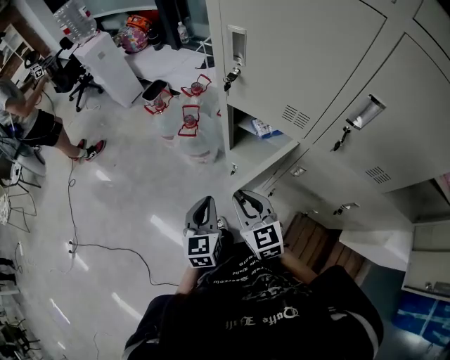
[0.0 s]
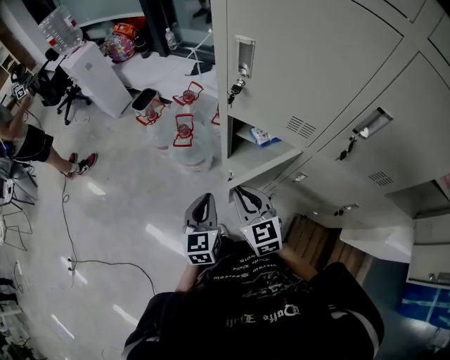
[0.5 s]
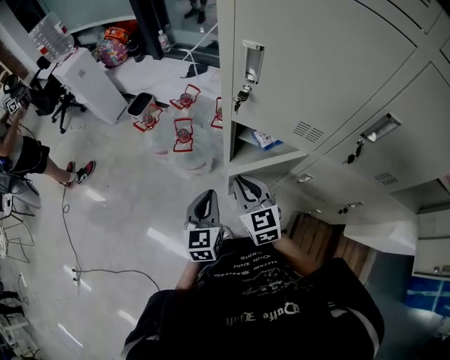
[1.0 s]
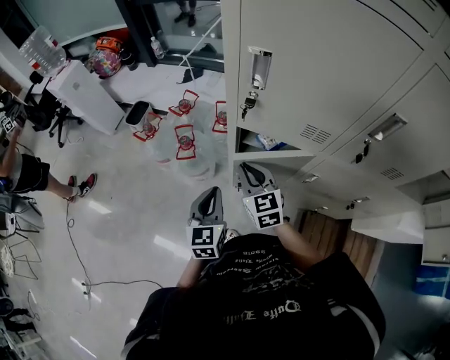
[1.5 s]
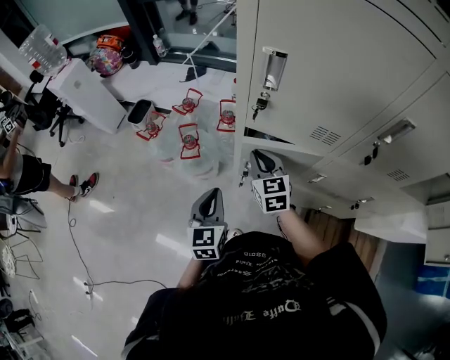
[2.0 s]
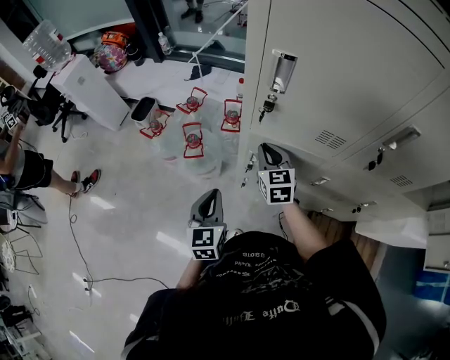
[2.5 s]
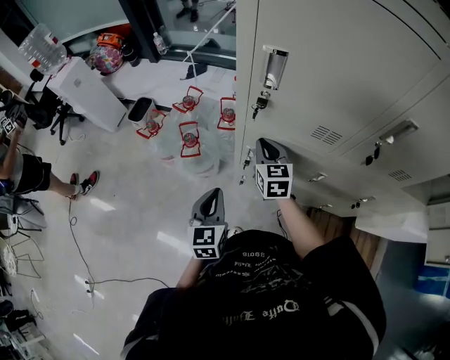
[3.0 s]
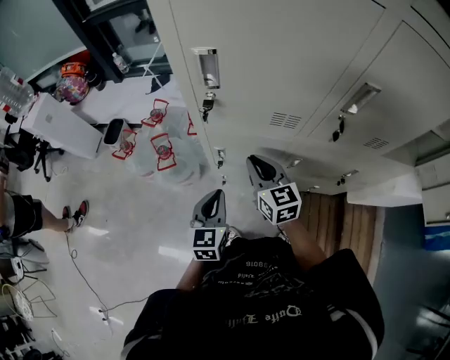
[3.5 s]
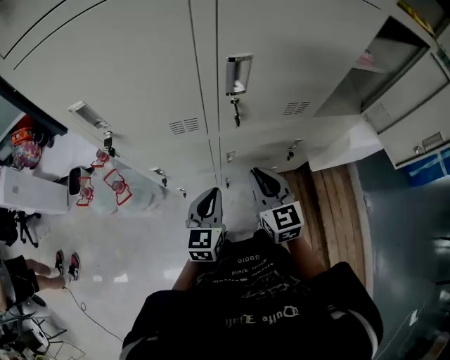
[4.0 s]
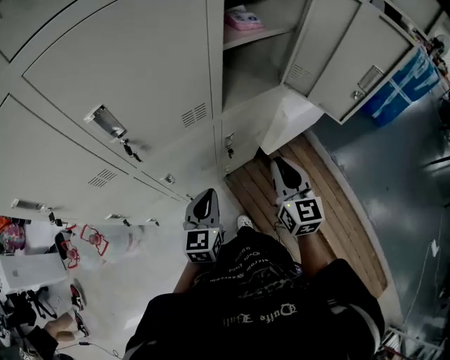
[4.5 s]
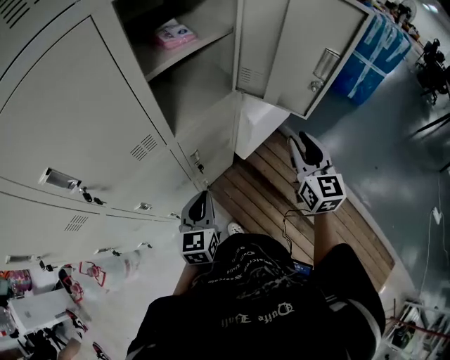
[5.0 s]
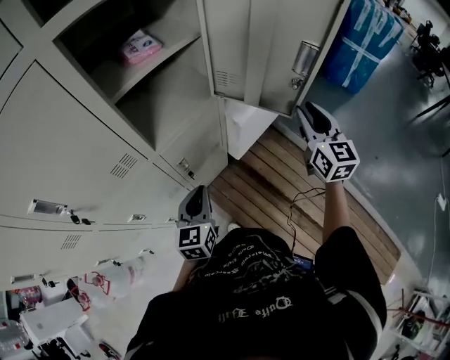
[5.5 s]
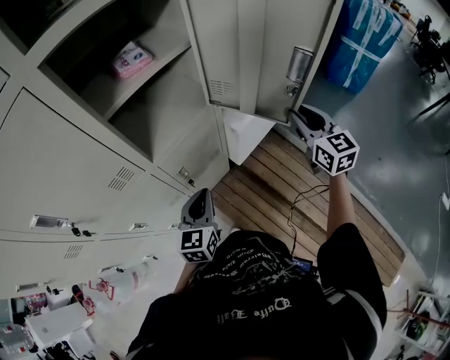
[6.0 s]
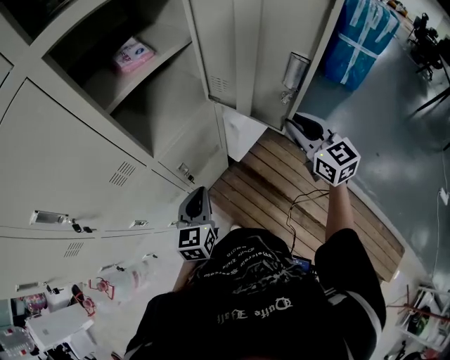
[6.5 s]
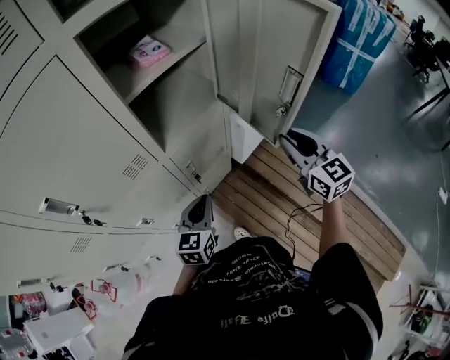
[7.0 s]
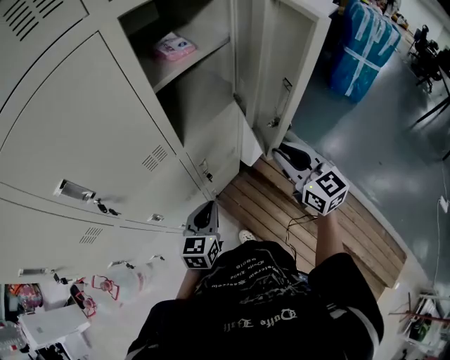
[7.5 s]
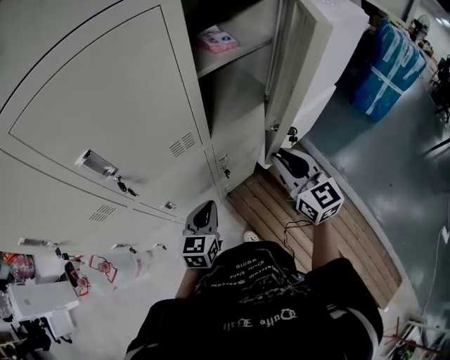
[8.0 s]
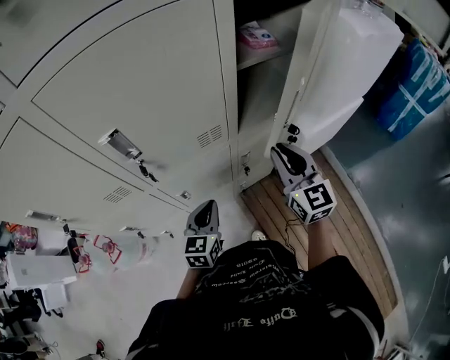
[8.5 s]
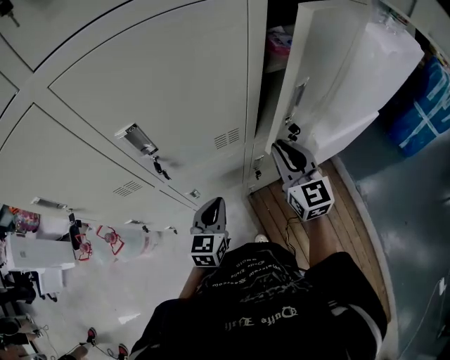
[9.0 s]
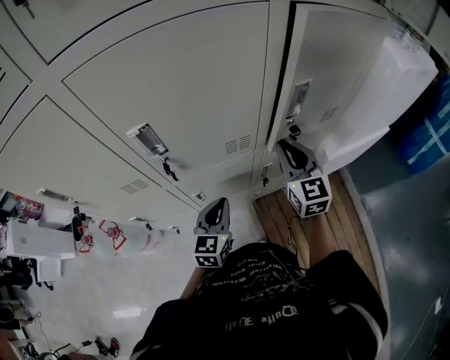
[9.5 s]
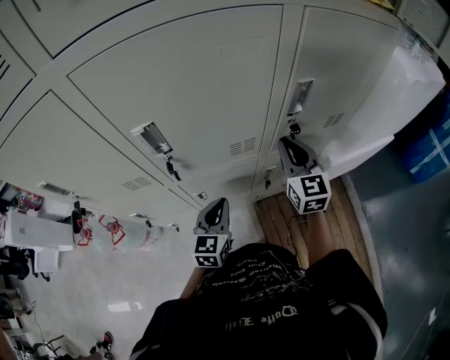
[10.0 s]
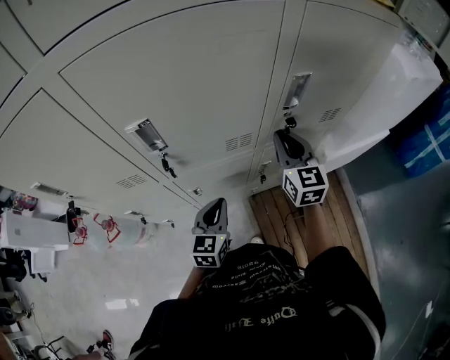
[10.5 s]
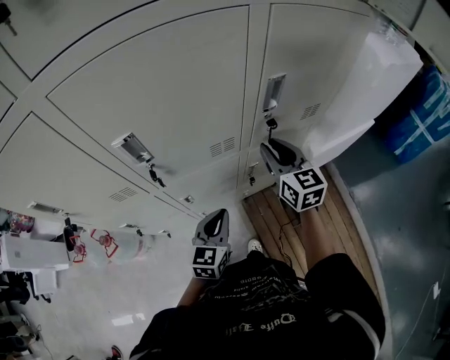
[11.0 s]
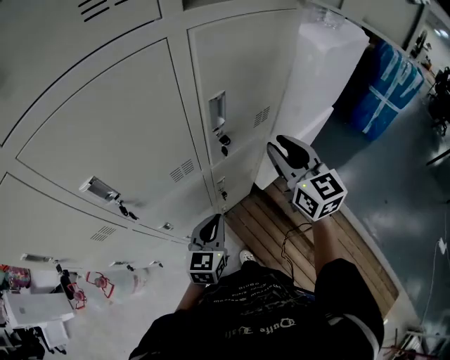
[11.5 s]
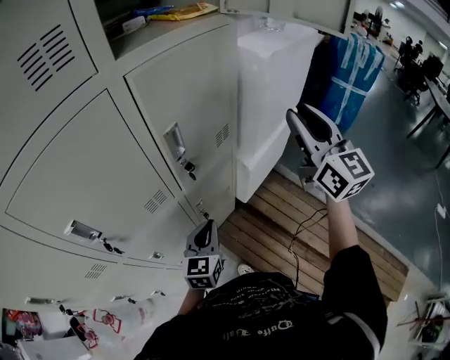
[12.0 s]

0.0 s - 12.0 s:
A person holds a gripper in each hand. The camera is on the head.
0.0 s - 2.0 s: The right gripper shifts roughly 20 cm forward, and changes its angle by approximately 20 degrees. The left gripper goes approximately 15 cm forward and to the left.
2.0 s - 4.0 s: The right gripper changes place by roughly 35 cm, and swivels some 30 degrees, while the left gripper changes place by some 25 cm, and changes its angle by about 30 degrees.
4.0 s - 6.0 s: The left gripper turns by about 30 degrees, while the right gripper moves some 30 cm, rotates roughly 40 degrees, and opens its fingers.
6.0 s - 8.0 s: The left gripper shifts approximately 15 cm to the left and backward; the right gripper is displaced to the left and backward by some 25 cm.
8.0 s - 10.0 s: The left gripper moves to the left, roughly 5 cm, while the right gripper goes roughly 15 cm forward and to the left.
10.0 s - 12.0 s: The left gripper is displaced to the right by about 15 cm, and changes its angle by about 30 degrees, while the right gripper heads to the right and upward, covering approximately 35 cm, swivels roughly 30 degrees, and opens.

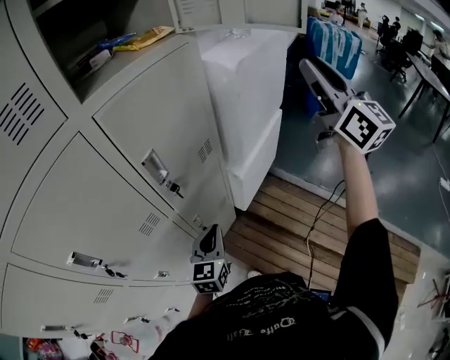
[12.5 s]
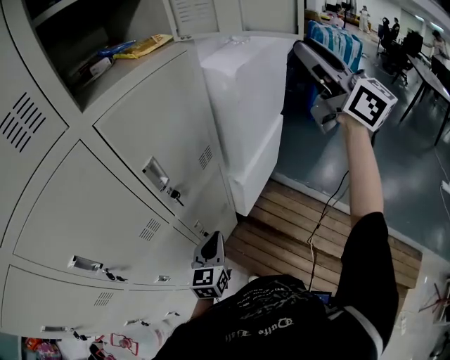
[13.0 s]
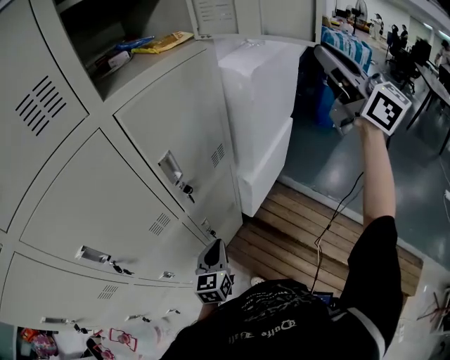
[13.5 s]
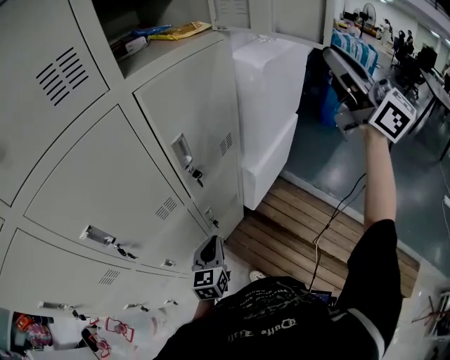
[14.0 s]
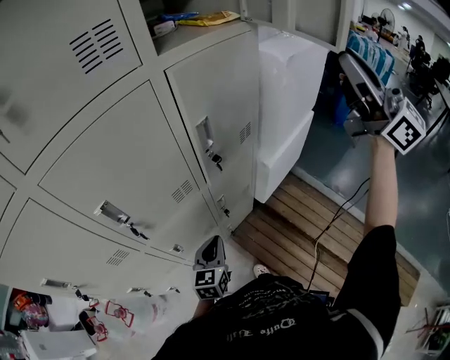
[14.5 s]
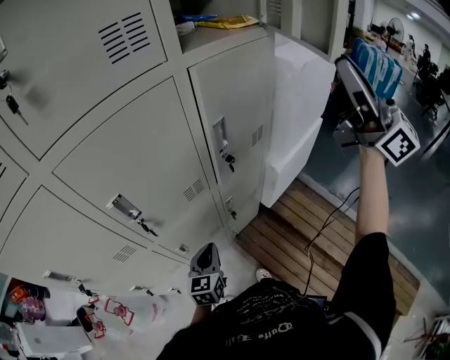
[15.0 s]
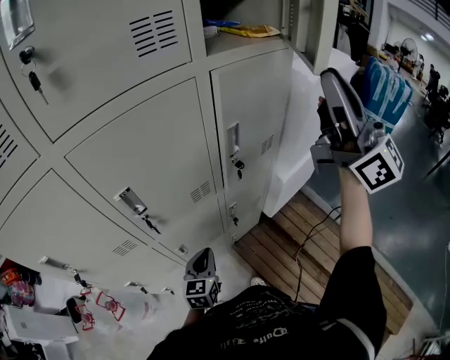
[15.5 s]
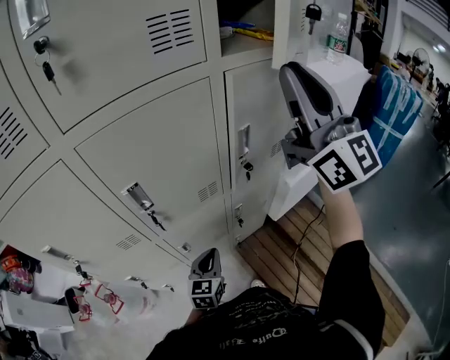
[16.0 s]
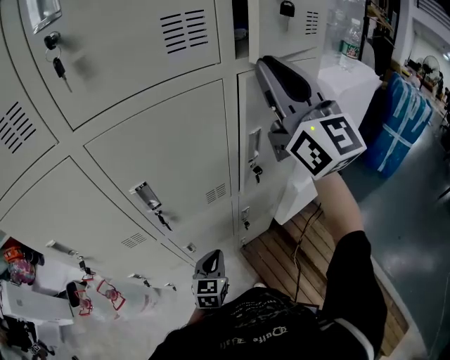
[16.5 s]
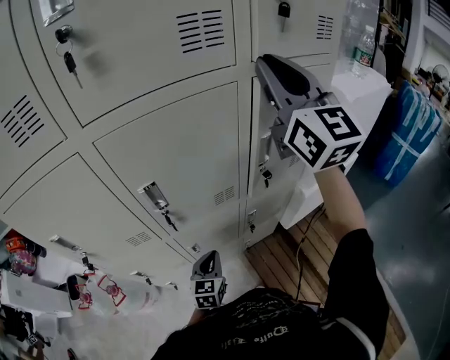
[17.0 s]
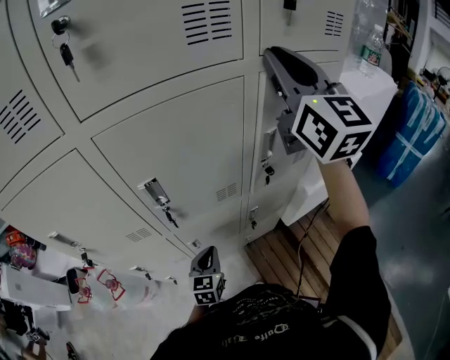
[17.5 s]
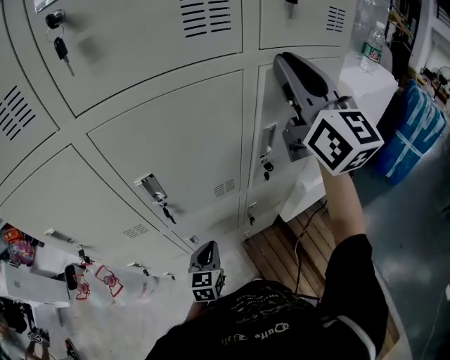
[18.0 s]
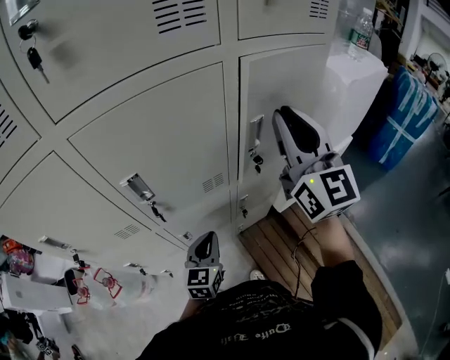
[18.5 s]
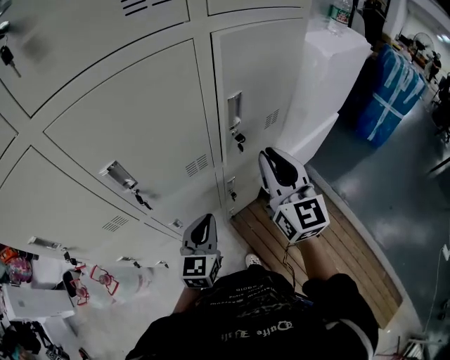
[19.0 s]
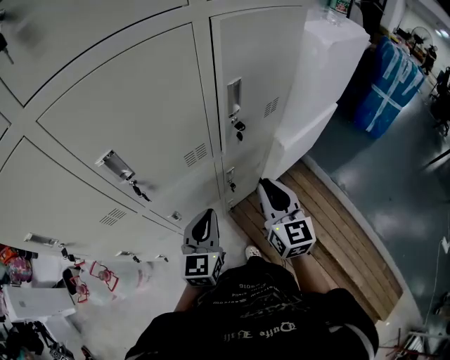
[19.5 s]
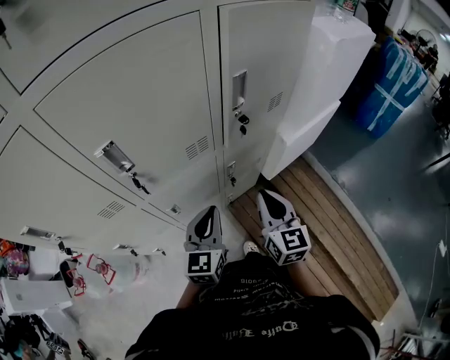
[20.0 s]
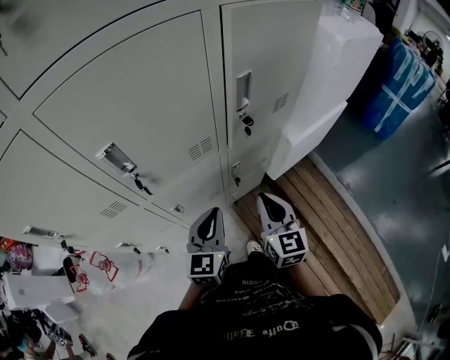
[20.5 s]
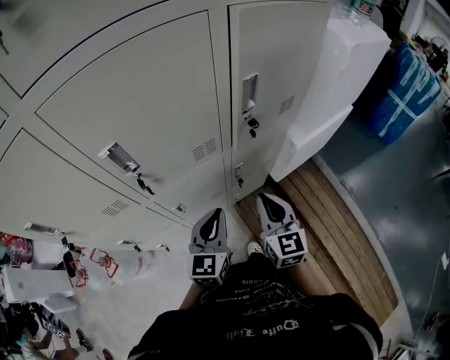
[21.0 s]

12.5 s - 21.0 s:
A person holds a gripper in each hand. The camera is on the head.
12.5 s - 14.5 s: The right gripper is displaced to the left, backward and upward by some 15 cm, and rotates approximately 30 degrees. Meanwhile the left gripper travels to the left, backward and downward by roughly 15 cm.
14.5 s - 16.5 s: The left gripper moves to the left, about 5 cm. The right gripper moves to the left and forward, some 25 cm.
16.5 s - 19.0 s: The right gripper is displaced downward by about 25 cm, and rotates approximately 30 degrees, while the left gripper goes approximately 5 cm upward.
19.0 s - 21.0 s: The right gripper is displaced downward by about 15 cm.

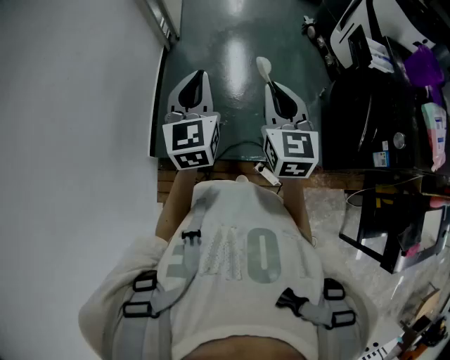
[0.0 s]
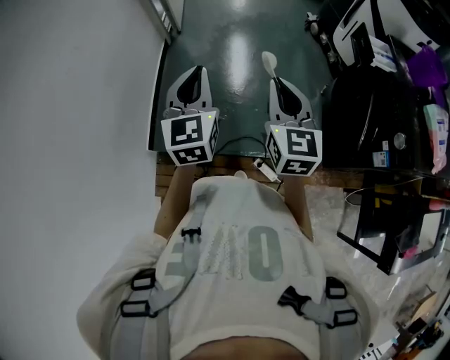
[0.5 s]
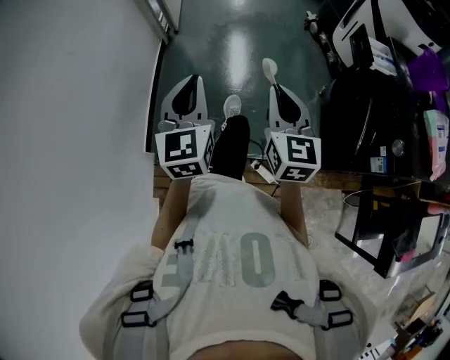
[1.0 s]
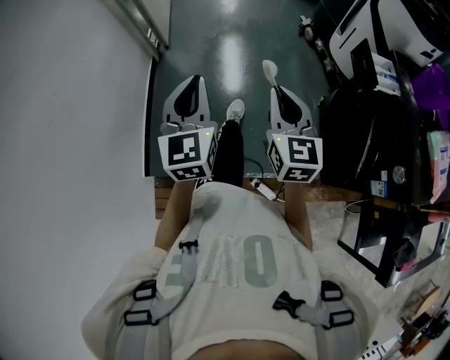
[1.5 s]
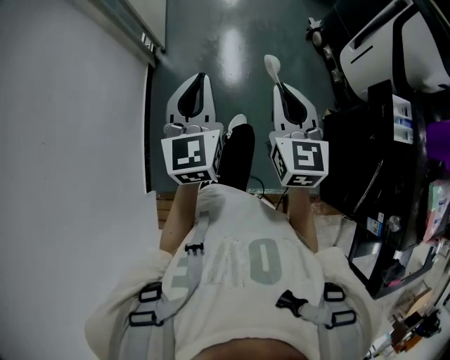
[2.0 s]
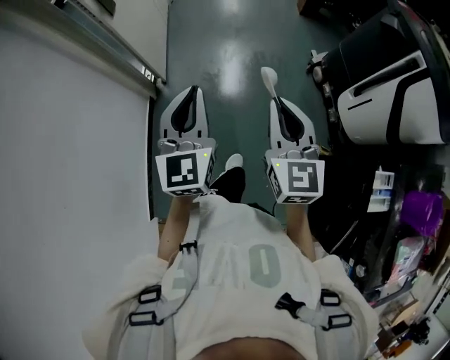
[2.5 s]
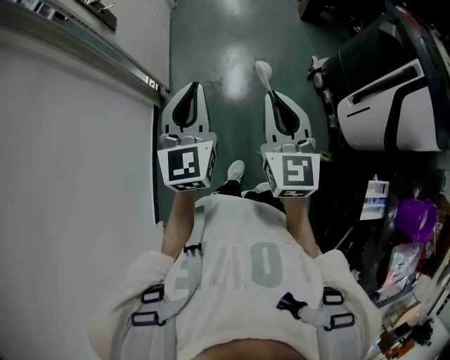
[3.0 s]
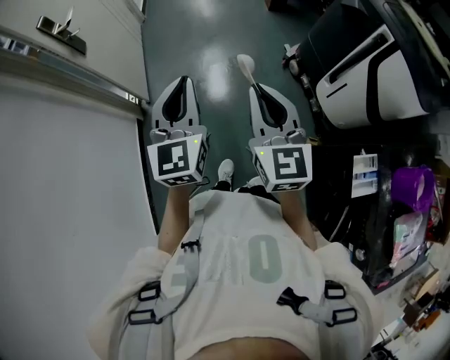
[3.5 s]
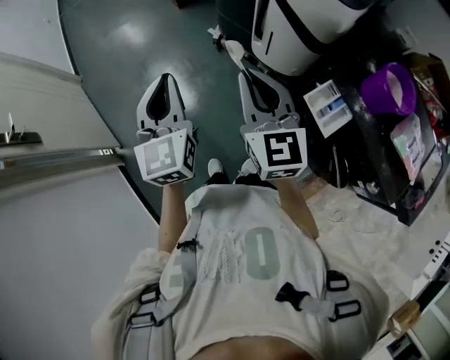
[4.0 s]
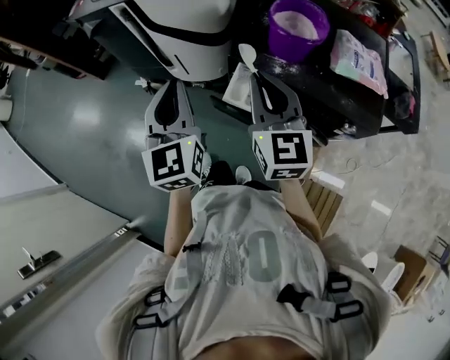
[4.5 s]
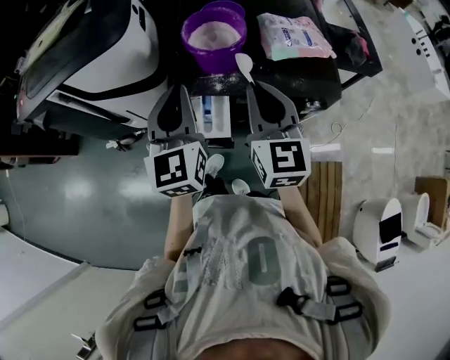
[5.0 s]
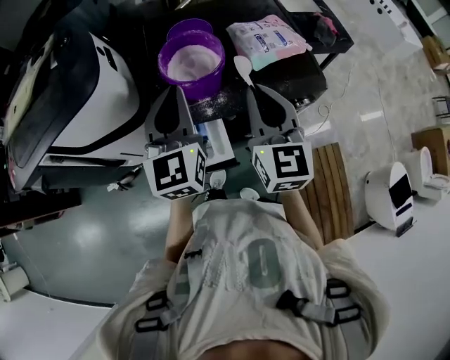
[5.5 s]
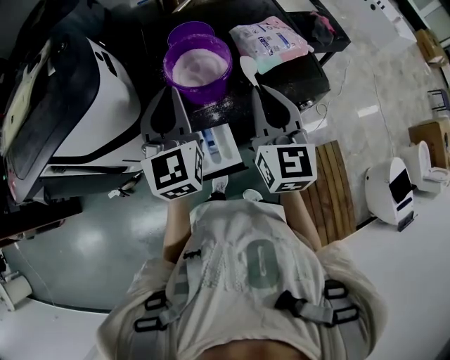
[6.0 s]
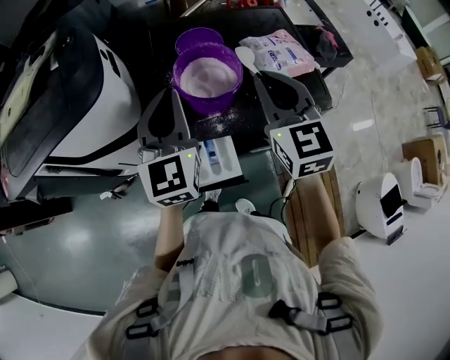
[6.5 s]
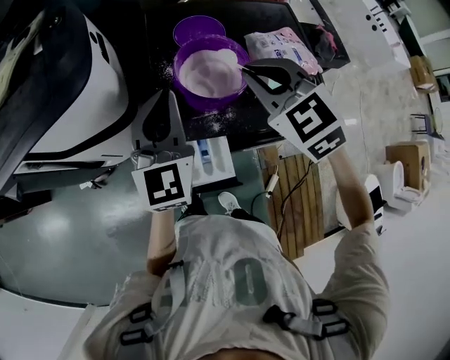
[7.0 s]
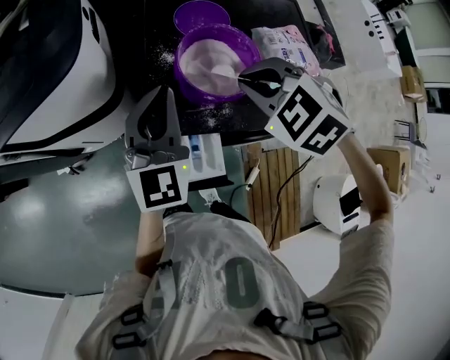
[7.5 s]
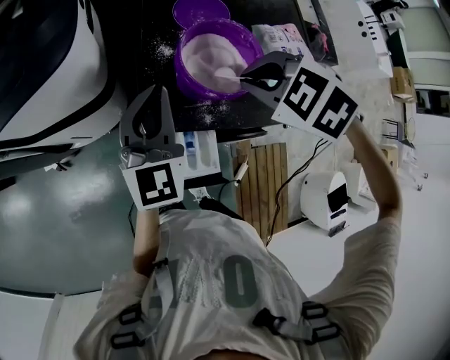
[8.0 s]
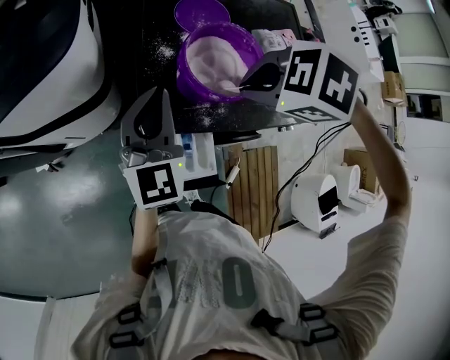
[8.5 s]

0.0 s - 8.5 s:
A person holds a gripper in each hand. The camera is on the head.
0.0 s - 2.0 s: The two grippers go approximately 35 cm forward.
2.0 s - 4.0 s: The left gripper moves about 40 cm, and turns by approximately 30 degrees. The right gripper ends up some 35 cm from where it was, and changes its angle by about 30 degrees.
4.0 s - 6.5 s: The pair of grippers is taken approximately 50 cm. The right gripper rotates roughly 60 degrees. The left gripper rotates roughly 70 degrees.
6.5 s - 8.5 s: Both grippers travel together downward, some 10 cm. The right gripper tips its fingers downward by roughly 70 degrees.
